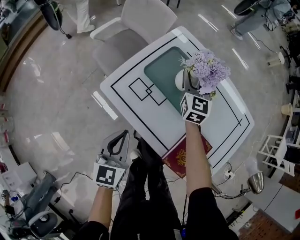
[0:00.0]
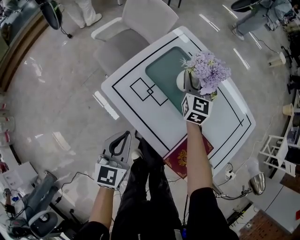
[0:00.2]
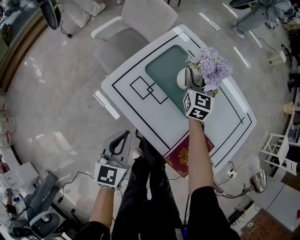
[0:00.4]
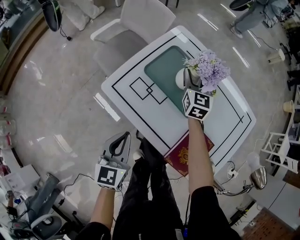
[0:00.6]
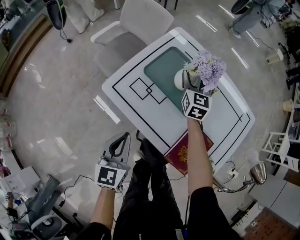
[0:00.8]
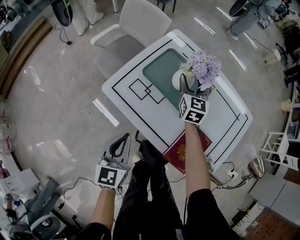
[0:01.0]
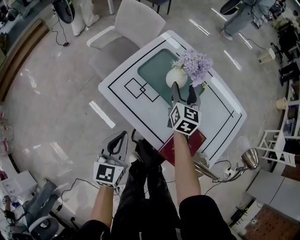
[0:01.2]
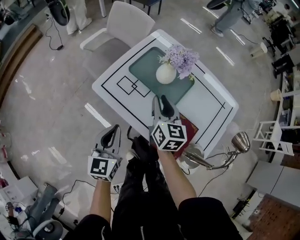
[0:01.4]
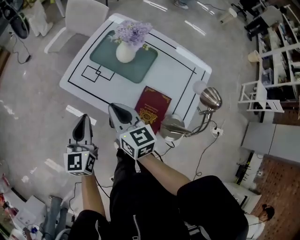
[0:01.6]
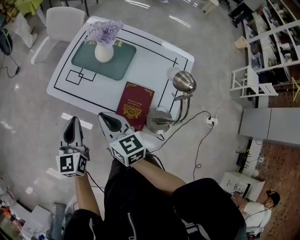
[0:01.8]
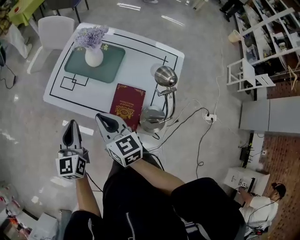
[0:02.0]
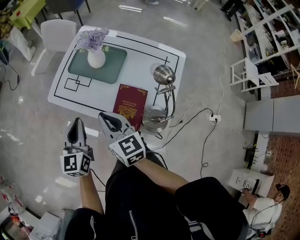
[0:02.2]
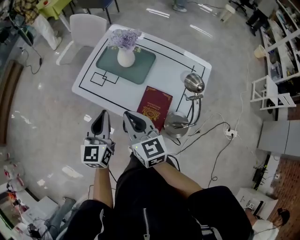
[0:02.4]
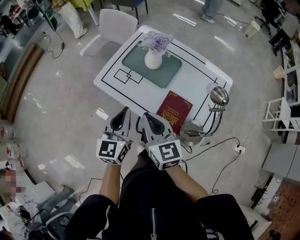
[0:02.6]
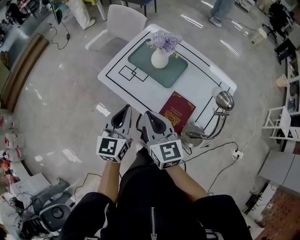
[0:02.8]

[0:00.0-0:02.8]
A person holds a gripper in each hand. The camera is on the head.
0.0 to 1.4 s: The right gripper travels backward by about 20 cm, rotates about 20 degrees, and closes its fingers; the left gripper changes place by some 5 cm.
1.4 to 2.8 s: The right gripper travels backward and upward by approximately 20 cm, and closes. The left gripper moves upward and to the right, some 10 cm.

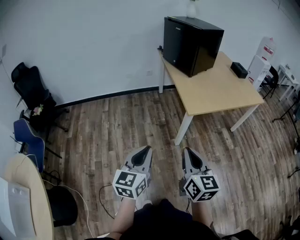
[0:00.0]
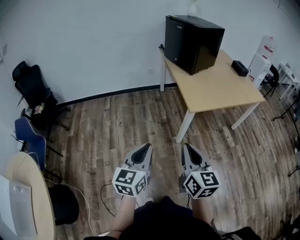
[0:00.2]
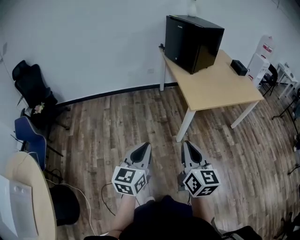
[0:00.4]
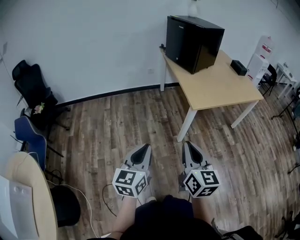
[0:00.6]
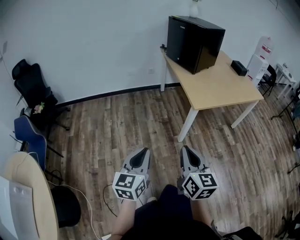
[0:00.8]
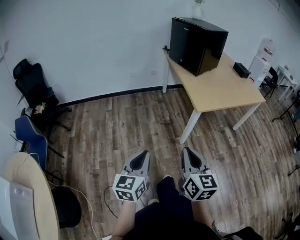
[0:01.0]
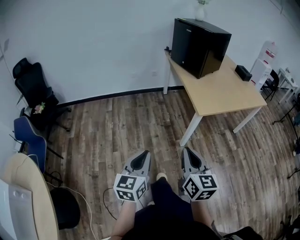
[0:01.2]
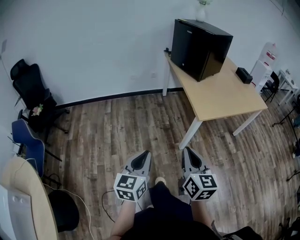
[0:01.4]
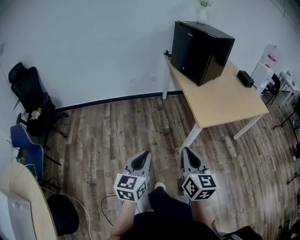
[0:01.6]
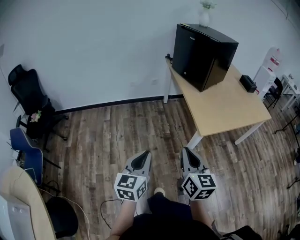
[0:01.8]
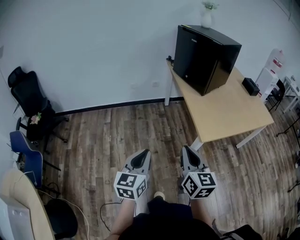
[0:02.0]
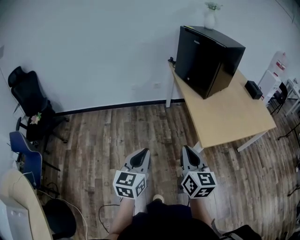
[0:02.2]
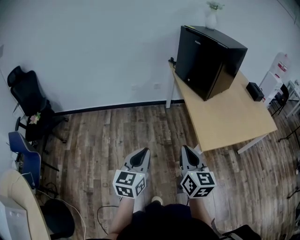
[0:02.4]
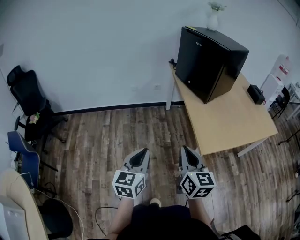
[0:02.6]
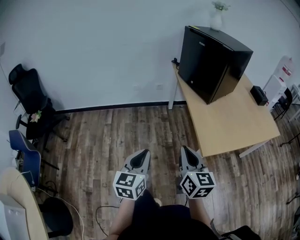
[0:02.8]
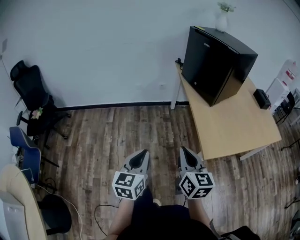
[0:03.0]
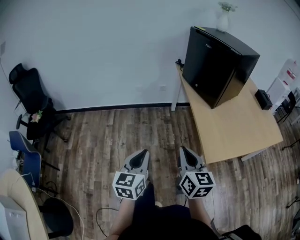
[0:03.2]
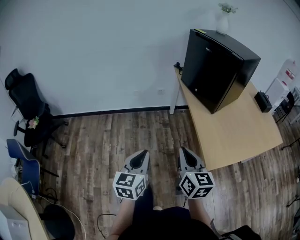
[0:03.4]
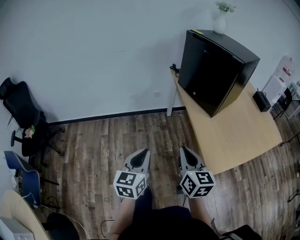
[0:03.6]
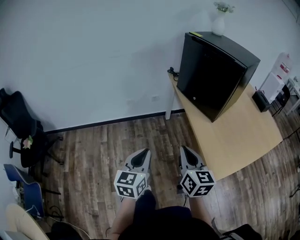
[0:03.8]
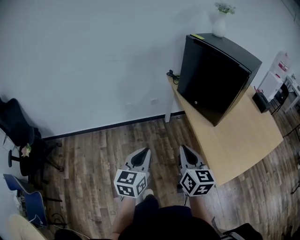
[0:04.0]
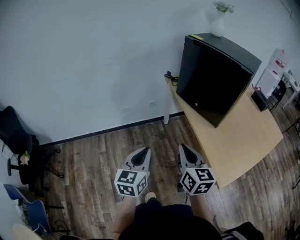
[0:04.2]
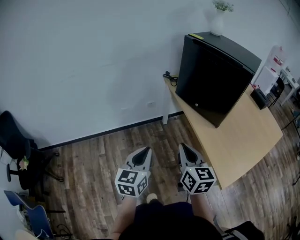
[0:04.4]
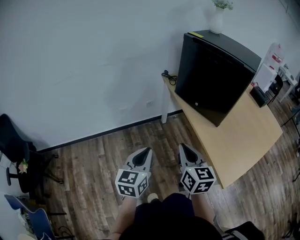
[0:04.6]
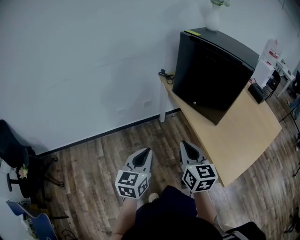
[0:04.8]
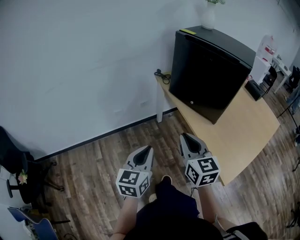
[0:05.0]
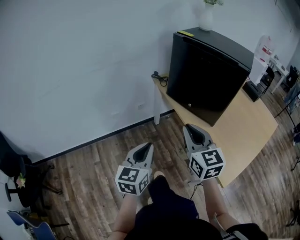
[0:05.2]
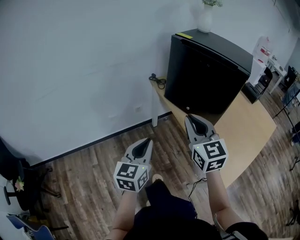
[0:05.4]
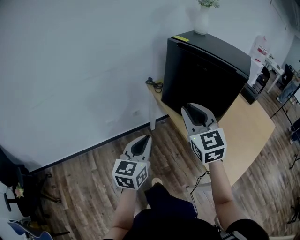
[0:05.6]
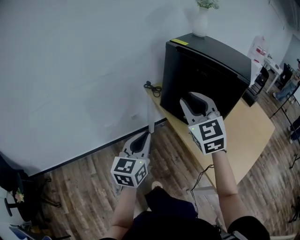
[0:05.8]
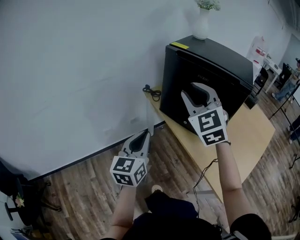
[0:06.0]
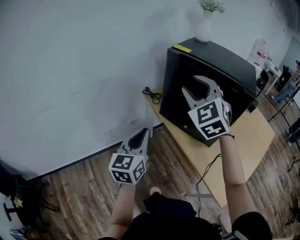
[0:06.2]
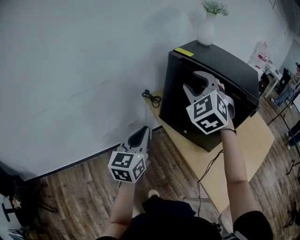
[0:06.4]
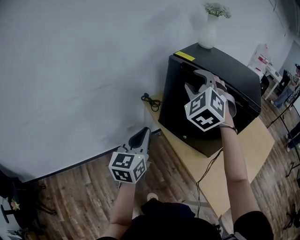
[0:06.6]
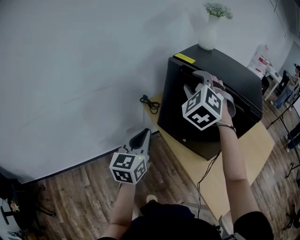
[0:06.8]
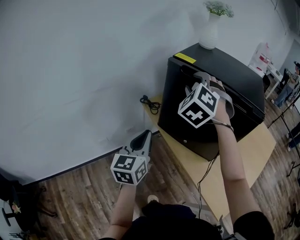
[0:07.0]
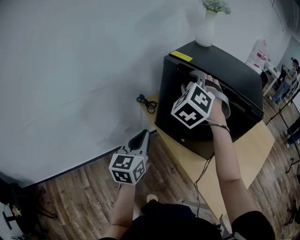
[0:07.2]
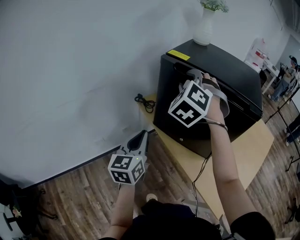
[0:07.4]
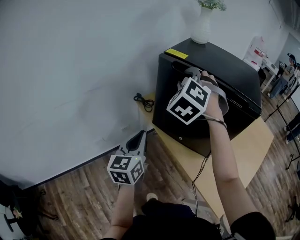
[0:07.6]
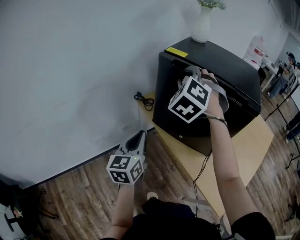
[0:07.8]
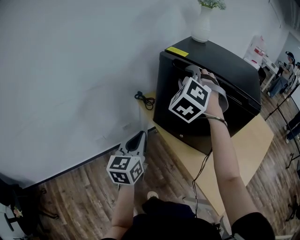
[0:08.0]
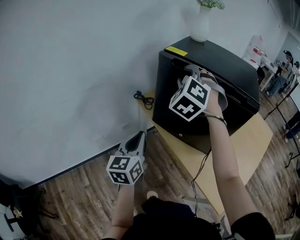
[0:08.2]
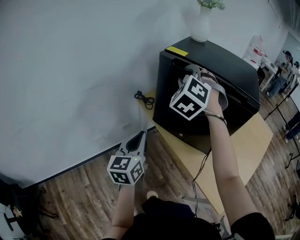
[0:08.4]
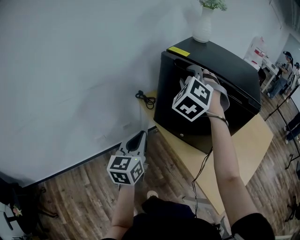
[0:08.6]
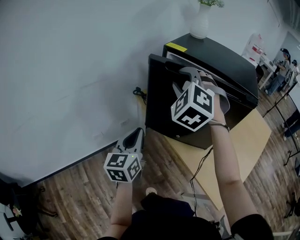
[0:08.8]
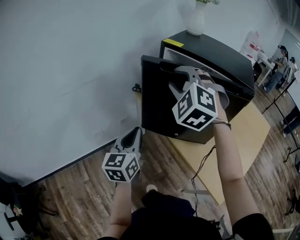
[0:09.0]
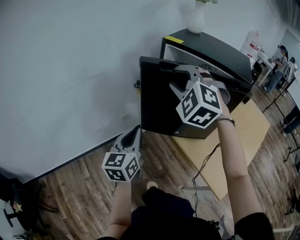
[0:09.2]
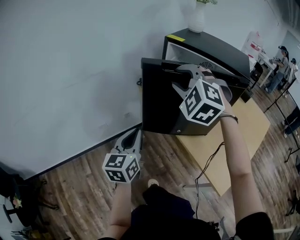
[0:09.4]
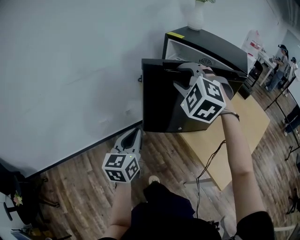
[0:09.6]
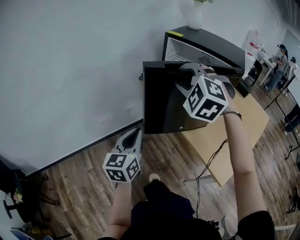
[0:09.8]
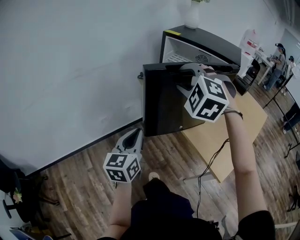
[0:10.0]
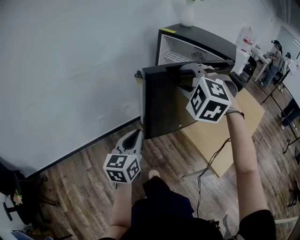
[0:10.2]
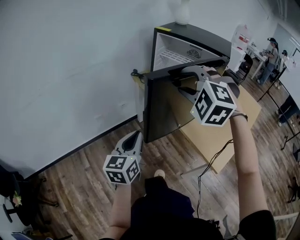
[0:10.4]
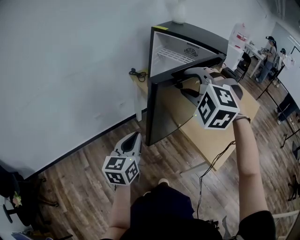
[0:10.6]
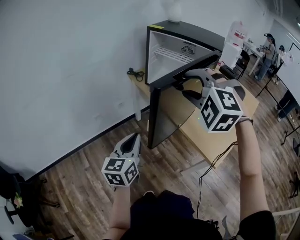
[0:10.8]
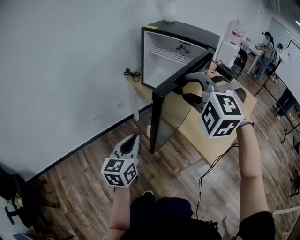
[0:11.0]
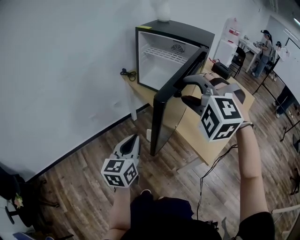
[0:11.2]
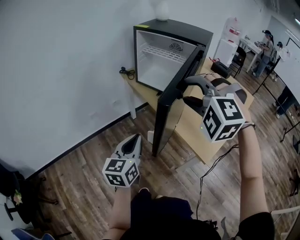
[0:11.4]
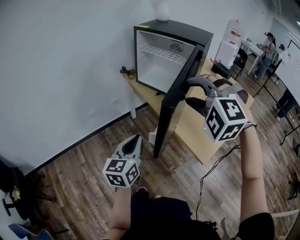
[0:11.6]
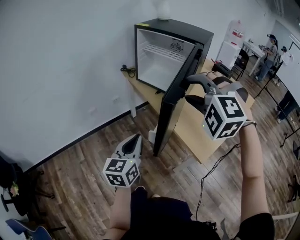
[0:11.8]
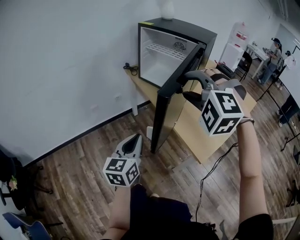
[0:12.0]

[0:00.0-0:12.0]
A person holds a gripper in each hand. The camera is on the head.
0.0 to 1.6 s: The left gripper shifts approximately 10 cm to the left and forward. The right gripper travels forward and to the left by about 10 cm.
1.6 to 3.0 s: The two grippers go approximately 20 cm forward.
3.0 to 4.4 s: Both grippers move forward, roughly 30 cm.
4.4 to 6.0 s: The left gripper travels forward by approximately 20 cm. Meanwhile the right gripper goes approximately 30 cm forward and upward, rolls counterclockwise, seen from behind, by approximately 50 degrees, and opens up.
6.0 to 7.6 s: Both grippers travel together forward, roughly 15 cm. The right gripper rotates roughly 40 degrees.
7.6 to 9.0 s: The right gripper moves backward, about 10 cm; the left gripper is displaced backward by approximately 5 cm.
9.0 to 10.4 s: Both grippers move backward, about 20 cm.
10.4 to 12.0 s: Both grippers move to the right and backward, about 15 cm.

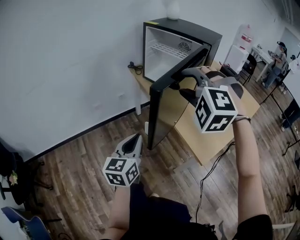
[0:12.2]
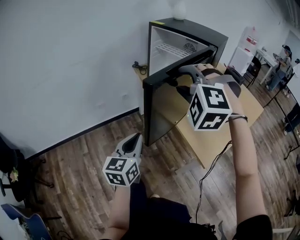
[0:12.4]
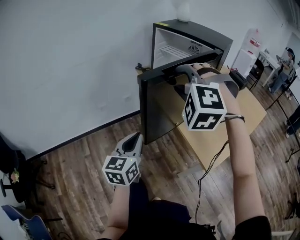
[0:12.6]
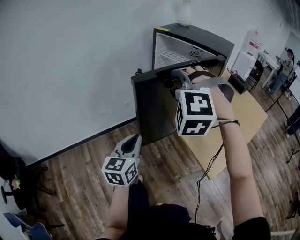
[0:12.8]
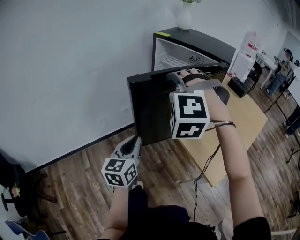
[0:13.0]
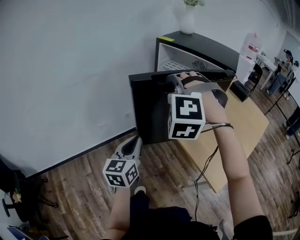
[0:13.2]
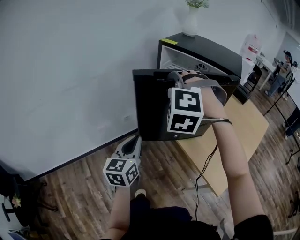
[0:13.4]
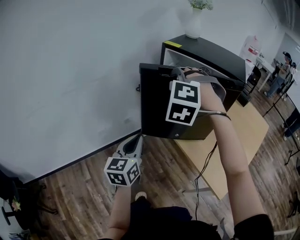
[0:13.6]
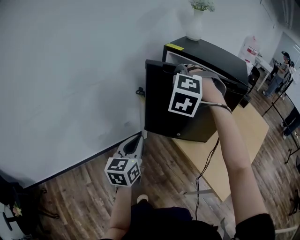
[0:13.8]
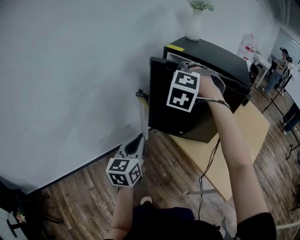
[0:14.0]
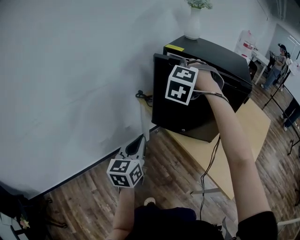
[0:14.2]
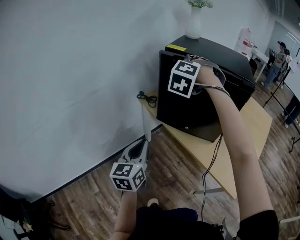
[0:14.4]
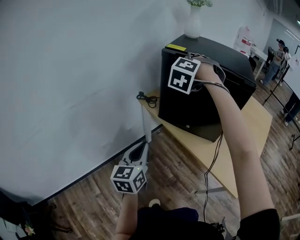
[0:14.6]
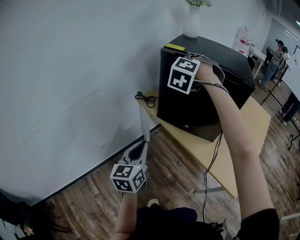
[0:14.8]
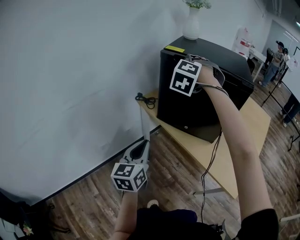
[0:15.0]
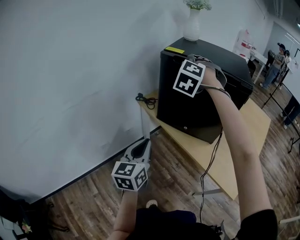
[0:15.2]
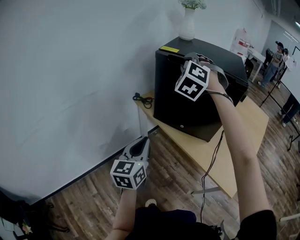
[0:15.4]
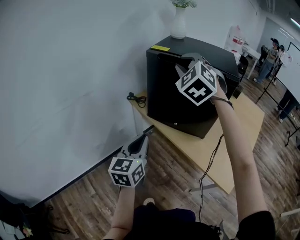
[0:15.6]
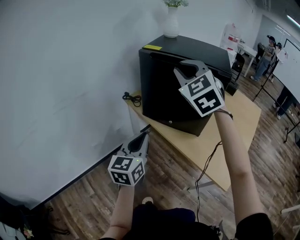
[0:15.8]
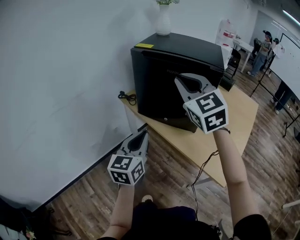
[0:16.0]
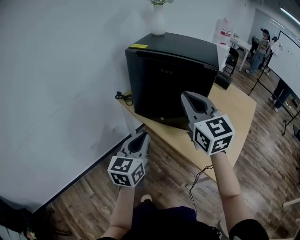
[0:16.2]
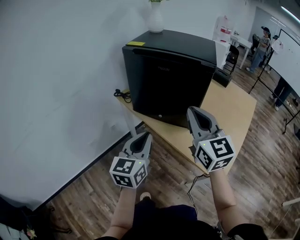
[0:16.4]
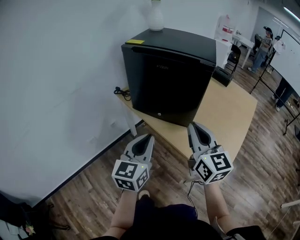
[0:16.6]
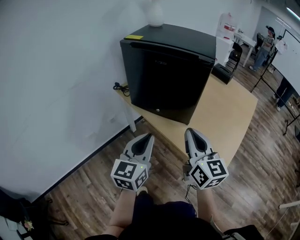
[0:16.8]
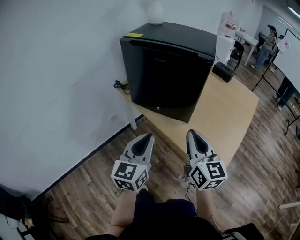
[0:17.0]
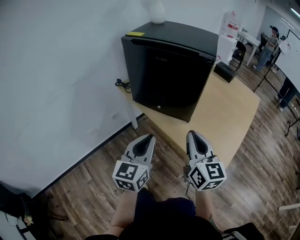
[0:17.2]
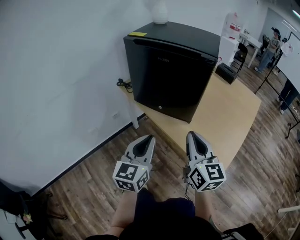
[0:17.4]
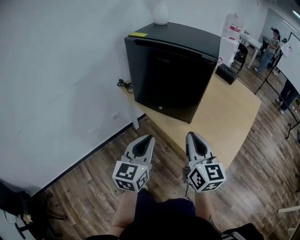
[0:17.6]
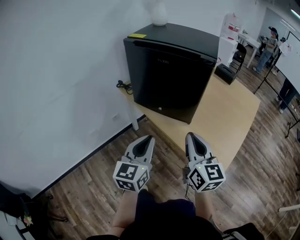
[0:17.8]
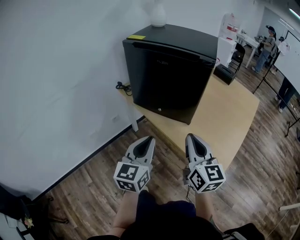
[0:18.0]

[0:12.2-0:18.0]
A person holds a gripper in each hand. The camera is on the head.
12.2 to 13.6 s: The two grippers go some 25 cm forward and to the left.
13.6 to 15.0 s: The right gripper is displaced forward by some 15 cm, and turns by some 20 degrees. The left gripper moves approximately 5 cm.
15.0 to 16.6 s: The left gripper moves to the right, roughly 15 cm. Meanwhile the right gripper is displaced backward and to the right by roughly 35 cm, rolls clockwise, seen from behind, by approximately 80 degrees, and closes its fingers.
16.6 to 18.0 s: The right gripper shifts by about 5 cm.

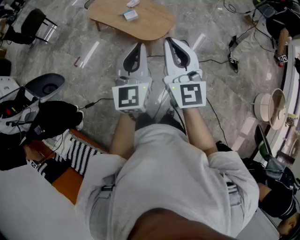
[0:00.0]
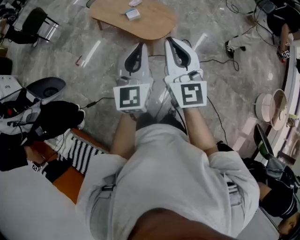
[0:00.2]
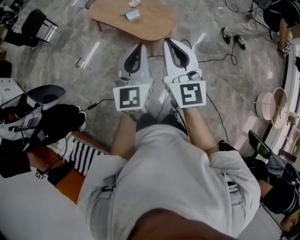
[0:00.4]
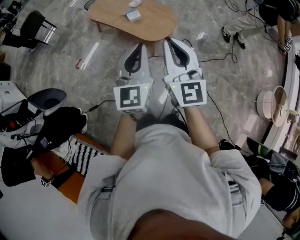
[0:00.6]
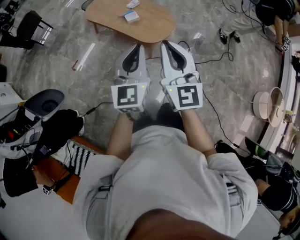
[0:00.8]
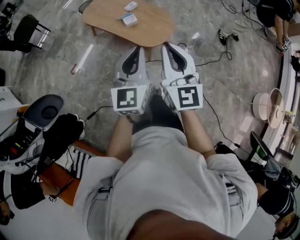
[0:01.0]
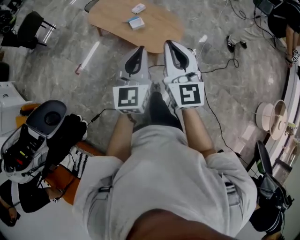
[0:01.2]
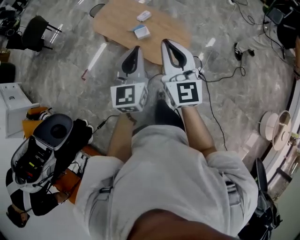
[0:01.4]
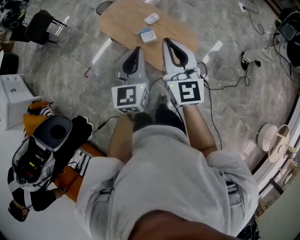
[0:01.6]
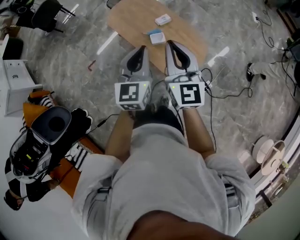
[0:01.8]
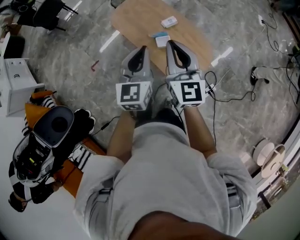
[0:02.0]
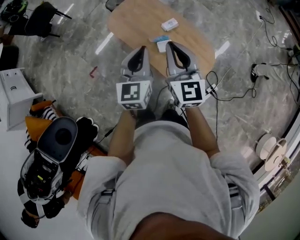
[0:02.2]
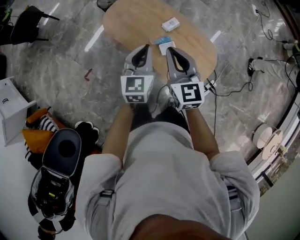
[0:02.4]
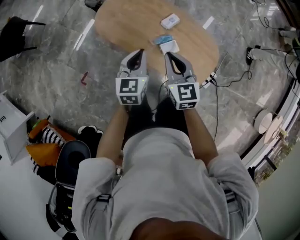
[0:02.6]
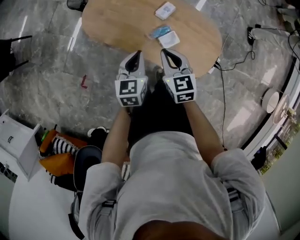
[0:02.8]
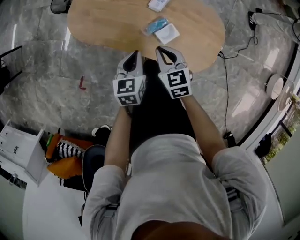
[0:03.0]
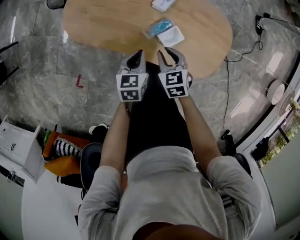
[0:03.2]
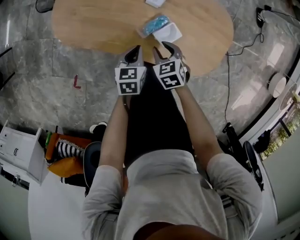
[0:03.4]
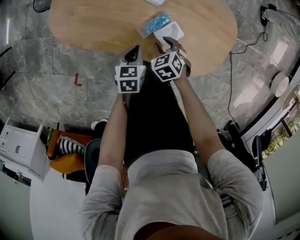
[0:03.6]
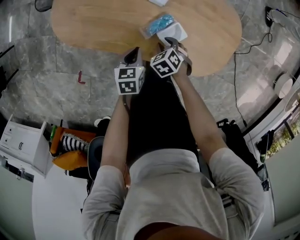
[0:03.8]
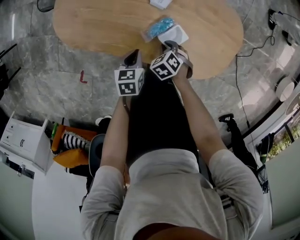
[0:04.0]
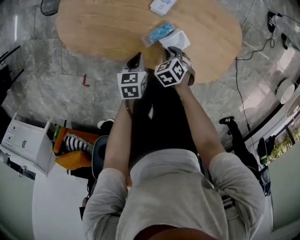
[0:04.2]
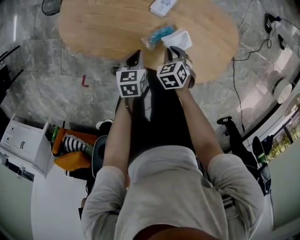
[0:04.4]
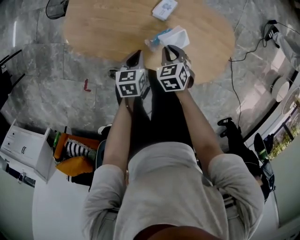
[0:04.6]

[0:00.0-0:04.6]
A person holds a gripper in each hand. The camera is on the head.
0.0 to 1.6 s: Both grippers move forward, approximately 35 cm.
1.6 to 3.0 s: Both grippers move downward, forward and to the left, approximately 50 cm. The left gripper angles its fingers downward, by roughly 30 degrees. Meanwhile the right gripper angles its fingers downward, by roughly 50 degrees.
3.0 to 4.6 s: The grippers both shift downward by approximately 10 cm. The right gripper swivels approximately 20 degrees, and opens, then closes once more.
